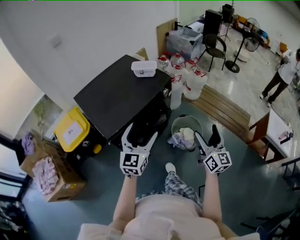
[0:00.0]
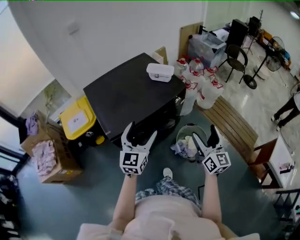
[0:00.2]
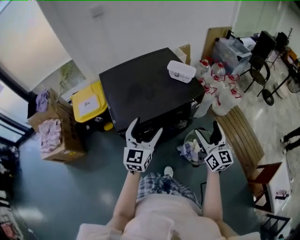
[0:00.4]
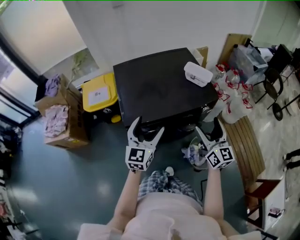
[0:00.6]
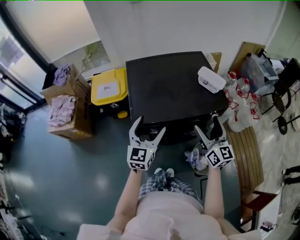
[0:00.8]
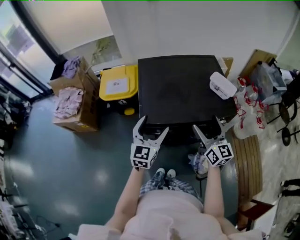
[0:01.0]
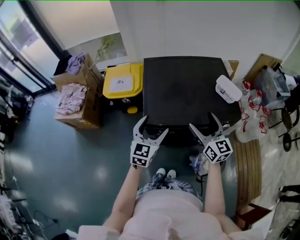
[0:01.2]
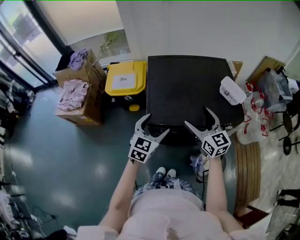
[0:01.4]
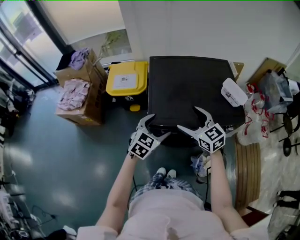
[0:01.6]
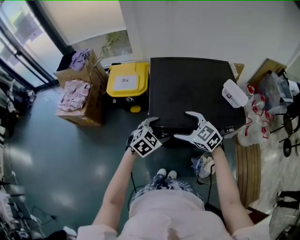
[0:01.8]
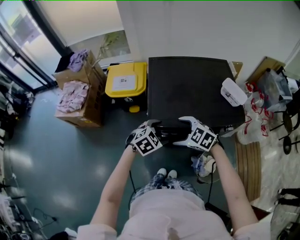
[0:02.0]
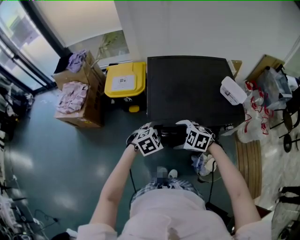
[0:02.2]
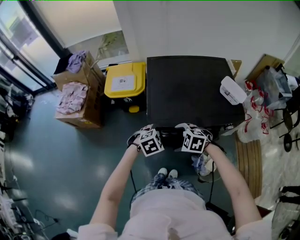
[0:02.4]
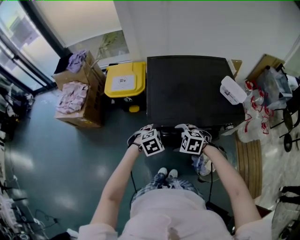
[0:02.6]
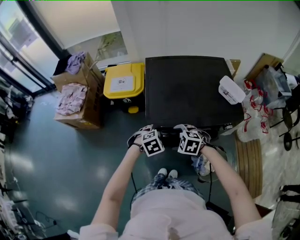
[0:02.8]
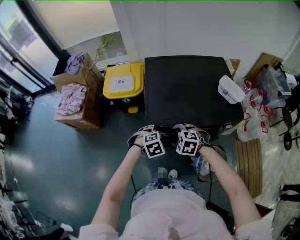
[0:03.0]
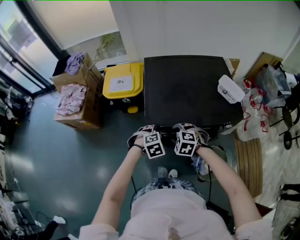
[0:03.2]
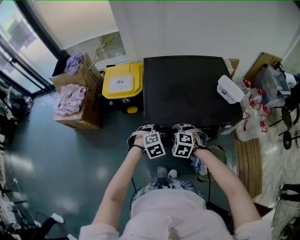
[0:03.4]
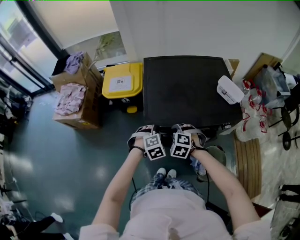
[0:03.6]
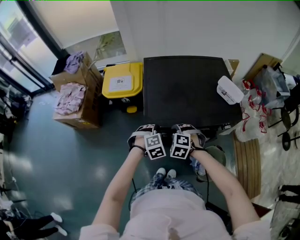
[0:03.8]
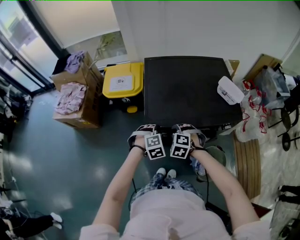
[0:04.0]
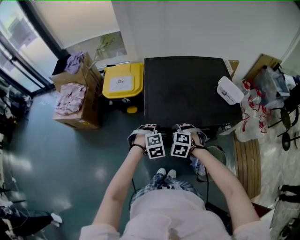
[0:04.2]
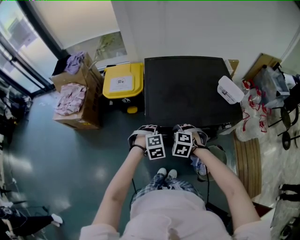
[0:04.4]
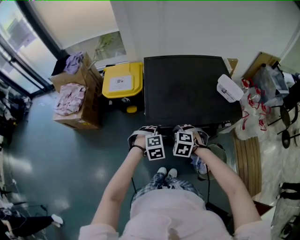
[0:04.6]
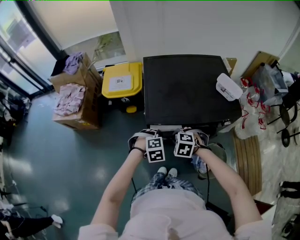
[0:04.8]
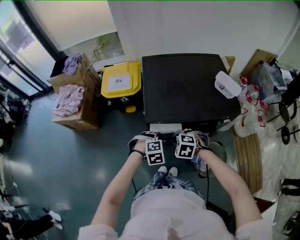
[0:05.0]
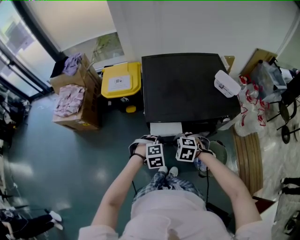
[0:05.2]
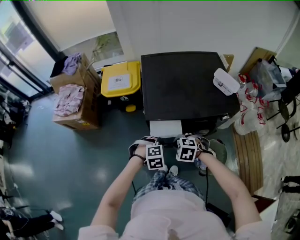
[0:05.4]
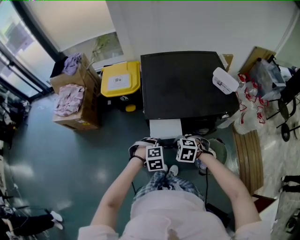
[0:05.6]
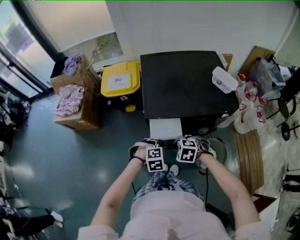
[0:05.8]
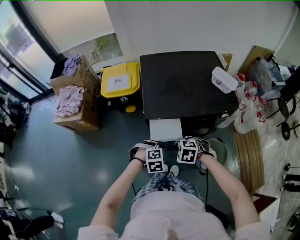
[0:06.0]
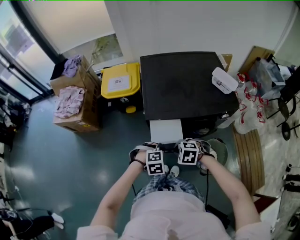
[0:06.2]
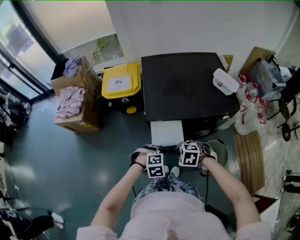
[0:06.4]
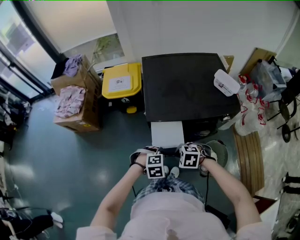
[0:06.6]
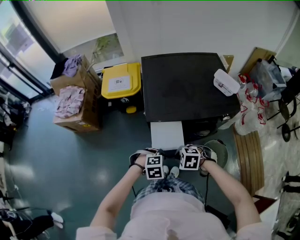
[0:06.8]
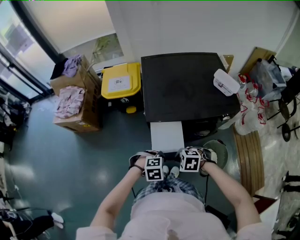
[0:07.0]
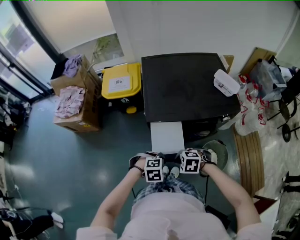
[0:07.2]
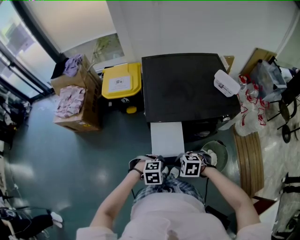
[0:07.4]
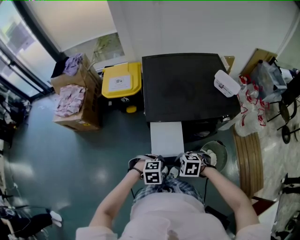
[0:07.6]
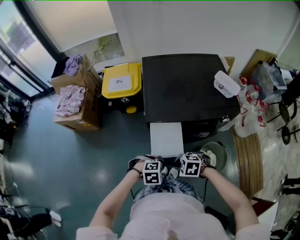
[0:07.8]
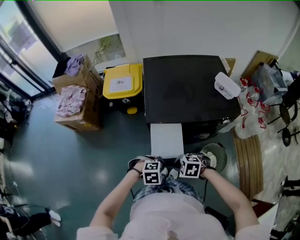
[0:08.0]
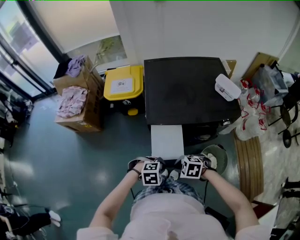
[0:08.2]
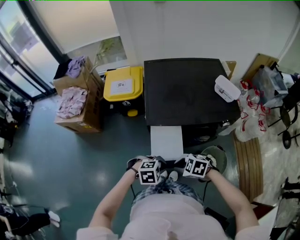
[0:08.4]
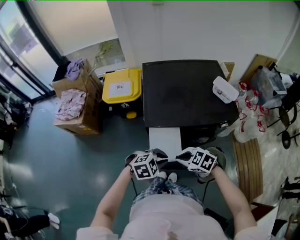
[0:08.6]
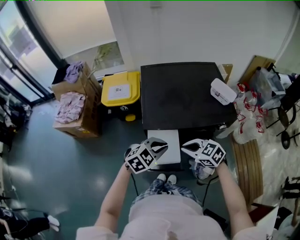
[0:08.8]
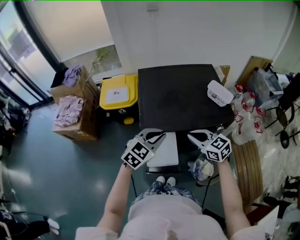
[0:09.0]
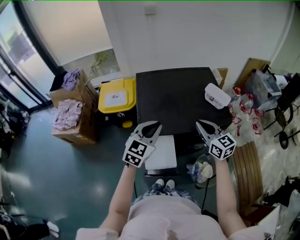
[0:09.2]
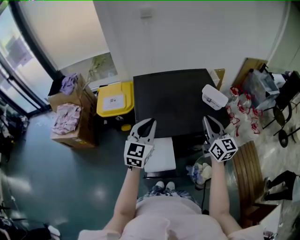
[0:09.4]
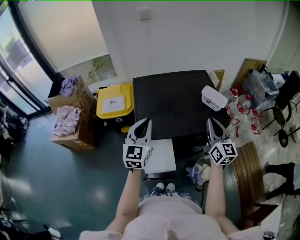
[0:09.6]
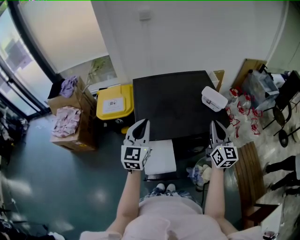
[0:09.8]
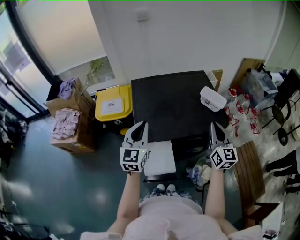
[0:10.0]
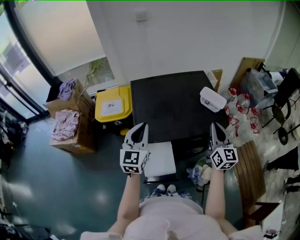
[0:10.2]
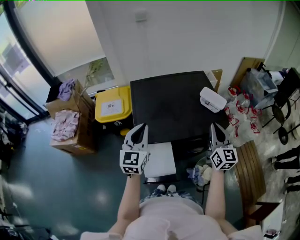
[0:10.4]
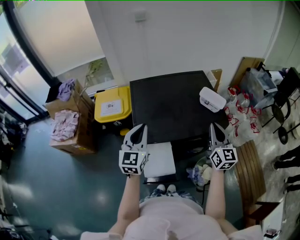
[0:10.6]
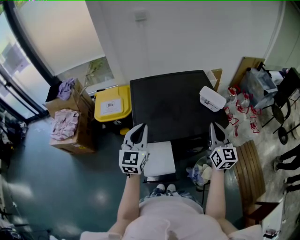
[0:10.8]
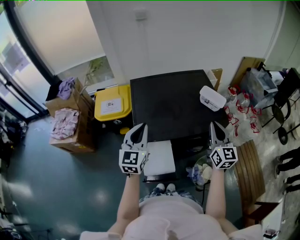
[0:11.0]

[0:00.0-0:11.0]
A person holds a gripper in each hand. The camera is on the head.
0:00.0 to 0:01.6: The right gripper ends up approximately 40 cm from where it was, and turns by approximately 80 degrees. Meanwhile the left gripper changes place by approximately 20 cm, and changes its angle by about 40 degrees.
0:01.6 to 0:03.2: The grippers both shift downward by about 15 cm. The left gripper tips its fingers downward by roughly 40 degrees; the right gripper tips its fingers downward by some 40 degrees, and closes up.
0:03.2 to 0:04.8: The left gripper closes up.
0:04.8 to 0:06.2: The left gripper moves roughly 10 cm, while the right gripper moves approximately 10 cm.
0:06.2 to 0:07.8: The left gripper ends up about 5 cm from where it was. Meanwhile the right gripper shifts by approximately 5 cm.
0:07.8 to 0:09.4: The left gripper is displaced upward by roughly 25 cm, and angles its fingers upward, by some 60 degrees. Meanwhile the right gripper moves some 40 cm, and tips its fingers upward by approximately 60 degrees.
0:09.4 to 0:11.0: The grippers move only a little.

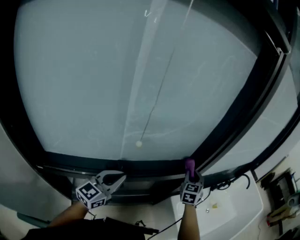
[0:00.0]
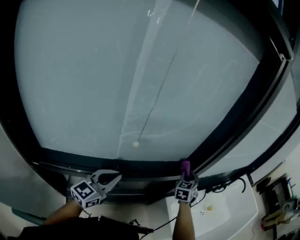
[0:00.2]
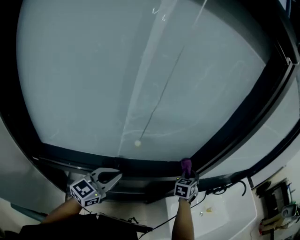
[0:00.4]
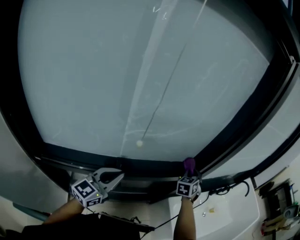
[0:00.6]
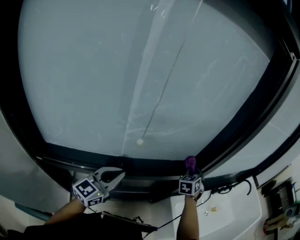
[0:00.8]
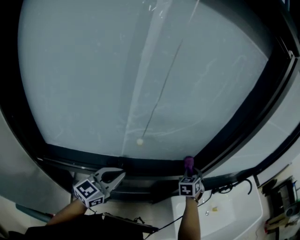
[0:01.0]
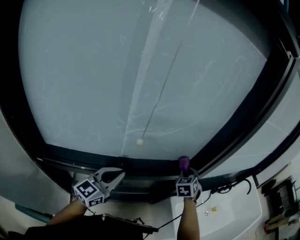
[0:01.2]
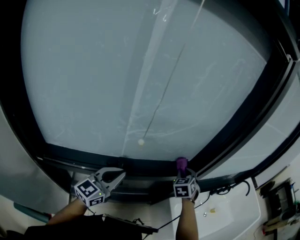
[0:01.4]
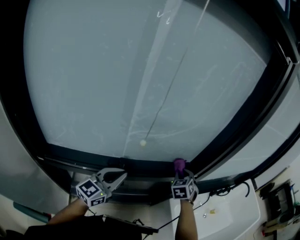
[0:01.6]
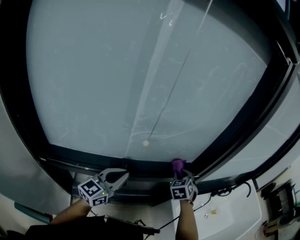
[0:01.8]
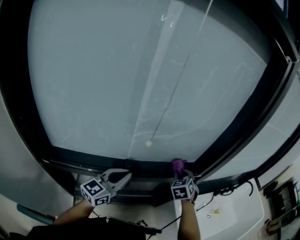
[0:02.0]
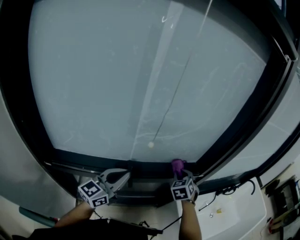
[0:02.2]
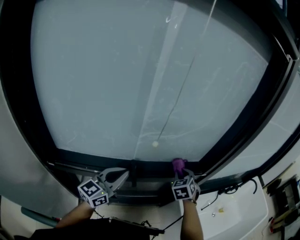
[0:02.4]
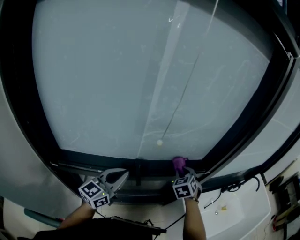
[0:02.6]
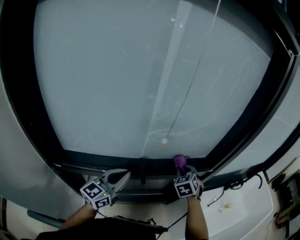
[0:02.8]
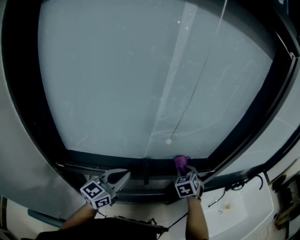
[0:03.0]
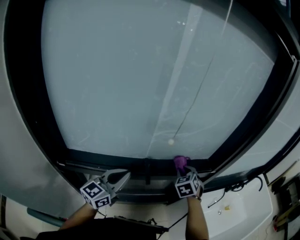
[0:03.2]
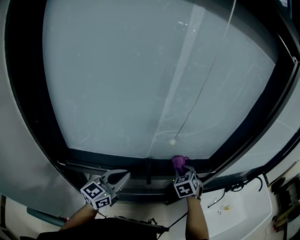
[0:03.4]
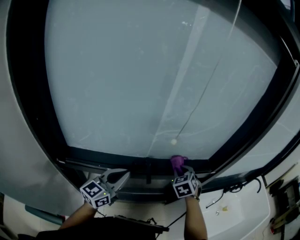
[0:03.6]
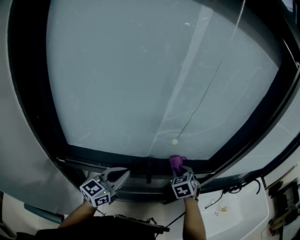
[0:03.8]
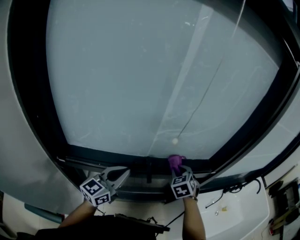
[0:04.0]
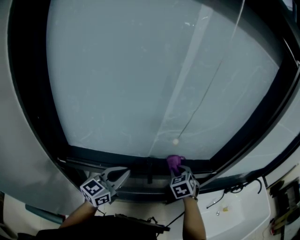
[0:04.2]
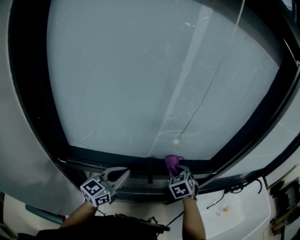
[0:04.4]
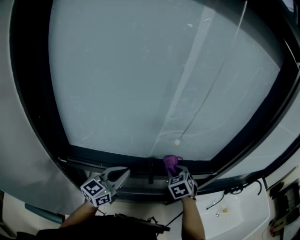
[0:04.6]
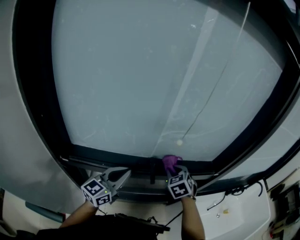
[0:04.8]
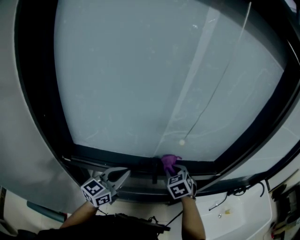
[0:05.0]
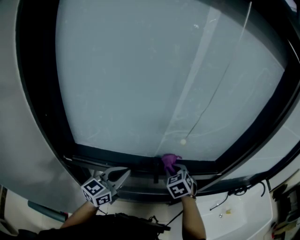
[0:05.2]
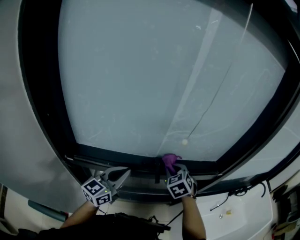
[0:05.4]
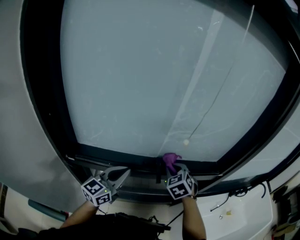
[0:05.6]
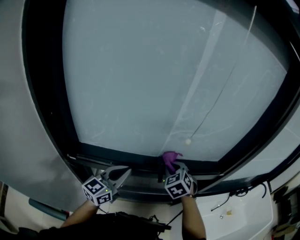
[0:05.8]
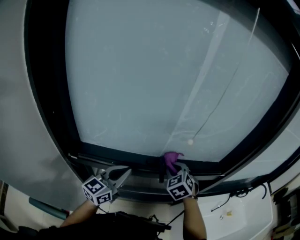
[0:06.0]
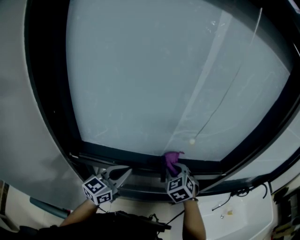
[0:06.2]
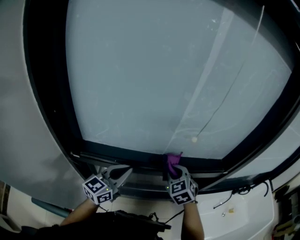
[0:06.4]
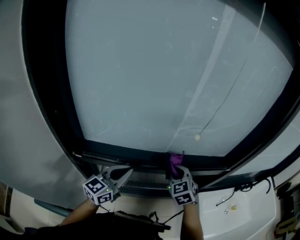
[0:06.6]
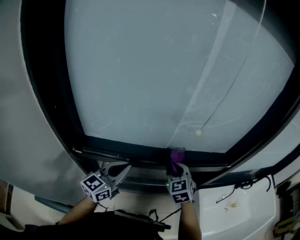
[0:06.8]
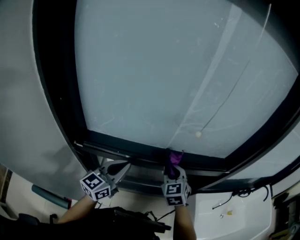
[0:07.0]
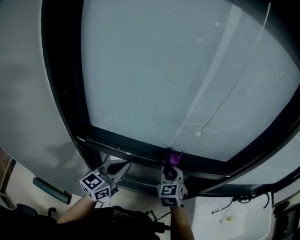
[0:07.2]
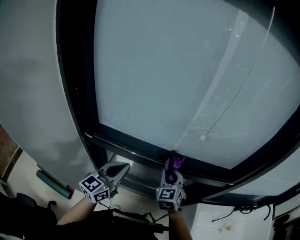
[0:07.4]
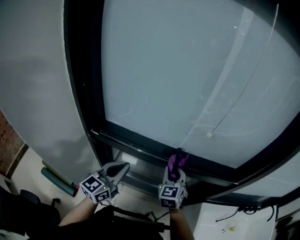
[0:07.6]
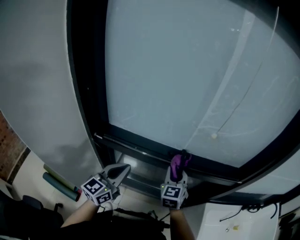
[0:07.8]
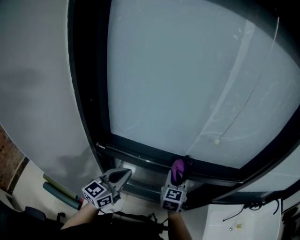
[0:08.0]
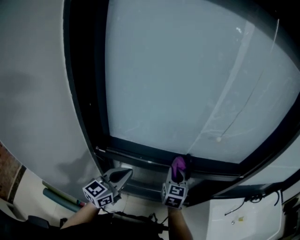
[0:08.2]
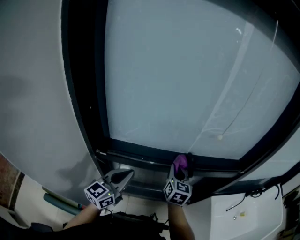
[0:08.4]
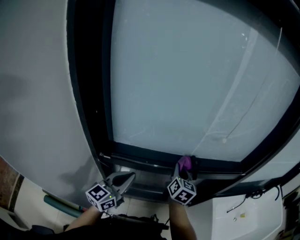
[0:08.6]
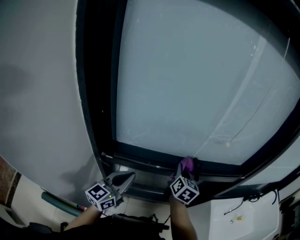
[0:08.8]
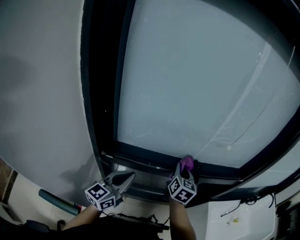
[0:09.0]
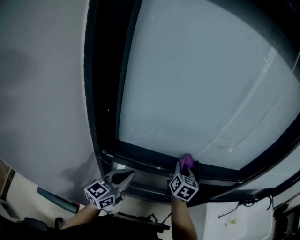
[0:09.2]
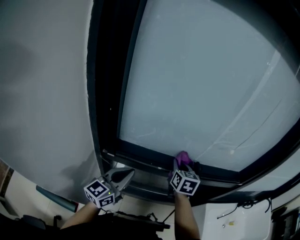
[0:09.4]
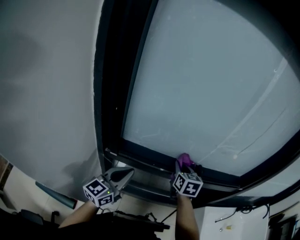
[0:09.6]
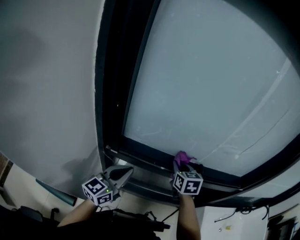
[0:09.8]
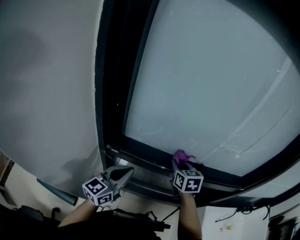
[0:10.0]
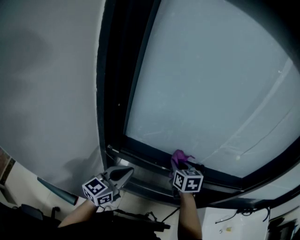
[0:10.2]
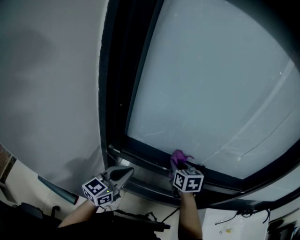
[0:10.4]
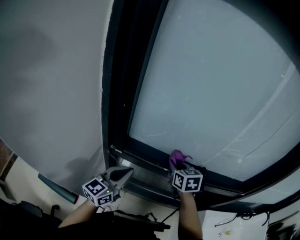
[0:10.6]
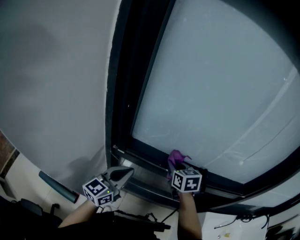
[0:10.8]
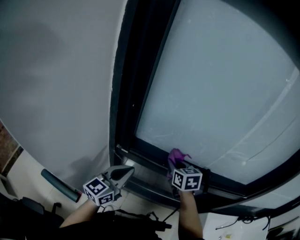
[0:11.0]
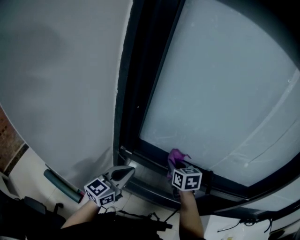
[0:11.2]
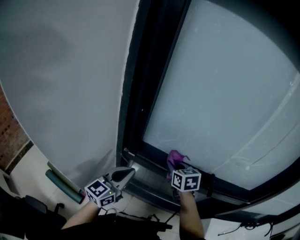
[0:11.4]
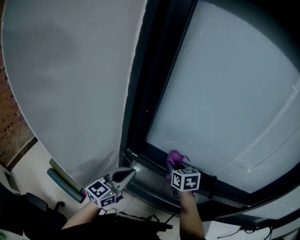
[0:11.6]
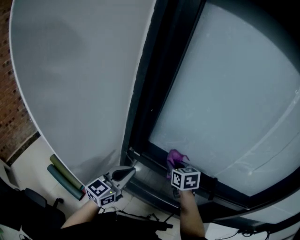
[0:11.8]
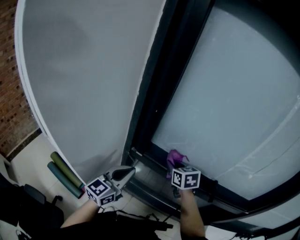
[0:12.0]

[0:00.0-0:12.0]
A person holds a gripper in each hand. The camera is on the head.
0:00.0 to 0:01.6: The right gripper shifts roughly 10 cm to the left, and changes its angle by roughly 20 degrees.
0:01.6 to 0:03.0: The grippers both shift to the left and backward by some 10 cm.
0:03.0 to 0:04.4: The right gripper travels to the left by some 5 cm.
0:04.4 to 0:06.0: The right gripper heads to the left, covering about 10 cm.
0:06.0 to 0:07.6: Both grippers travel together backward, roughly 5 cm. The right gripper turns by about 20 degrees.
0:07.6 to 0:09.0: The left gripper moves to the left, roughly 10 cm. The right gripper heads to the left, covering roughly 5 cm, and swivels approximately 40 degrees.
0:09.0 to 0:10.4: The right gripper travels to the left by approximately 10 cm, and swivels about 40 degrees.
0:10.4 to 0:12.0: The left gripper travels to the left by about 5 cm. Meanwhile the right gripper is displaced to the left by about 10 cm.

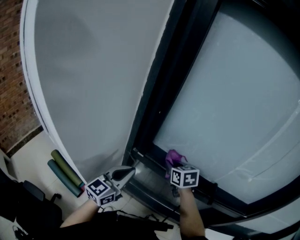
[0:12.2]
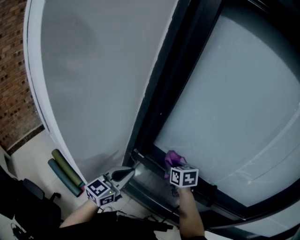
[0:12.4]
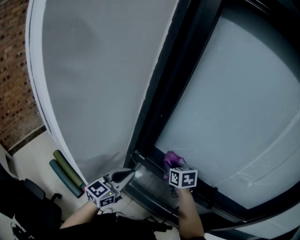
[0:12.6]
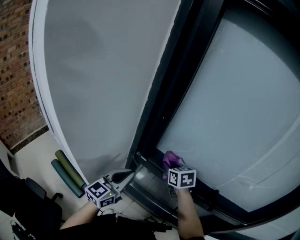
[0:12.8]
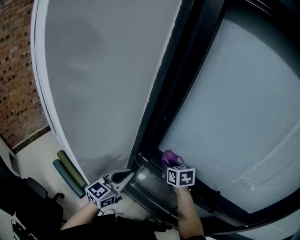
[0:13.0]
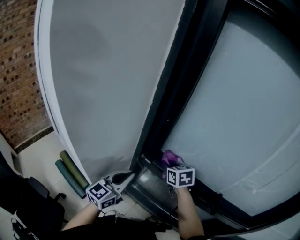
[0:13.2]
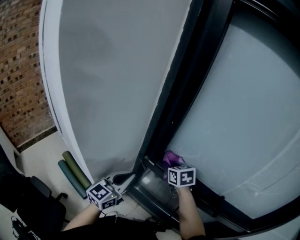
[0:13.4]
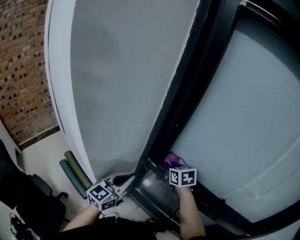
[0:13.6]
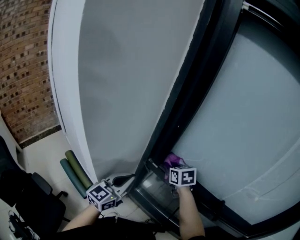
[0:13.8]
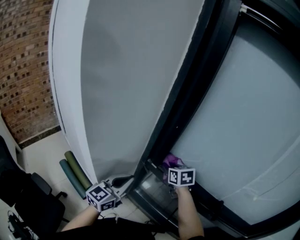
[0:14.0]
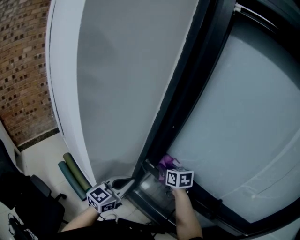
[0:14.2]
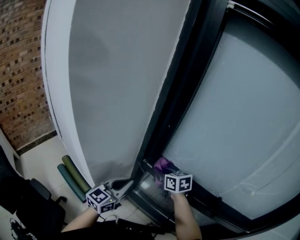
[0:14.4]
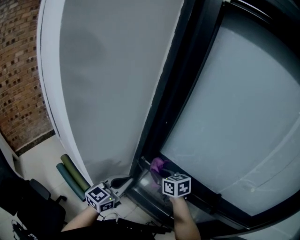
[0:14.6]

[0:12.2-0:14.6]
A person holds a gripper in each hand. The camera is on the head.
0:12.2 to 0:13.4: The right gripper goes some 5 cm to the left.
0:13.4 to 0:14.6: The right gripper goes some 5 cm backward.
